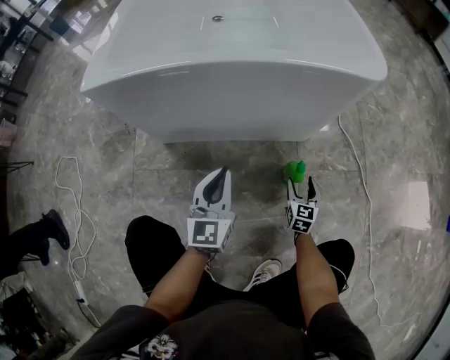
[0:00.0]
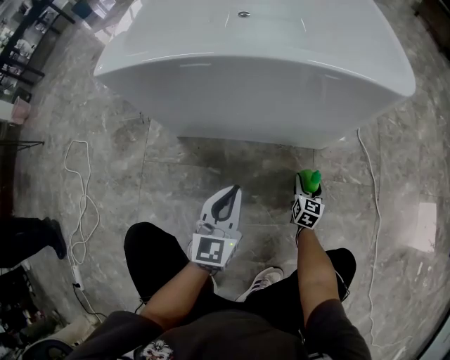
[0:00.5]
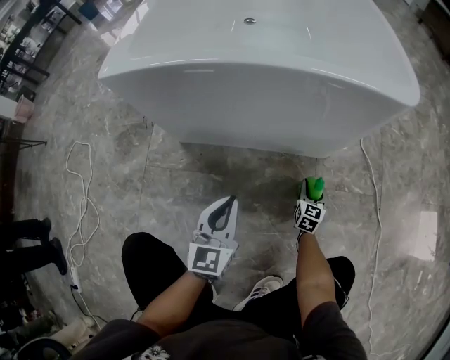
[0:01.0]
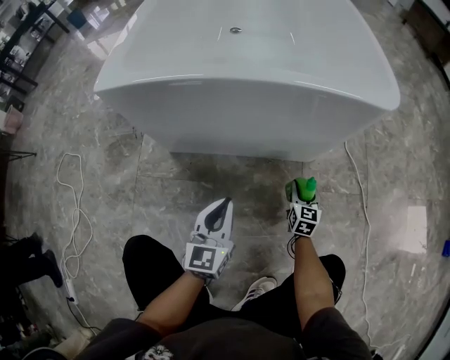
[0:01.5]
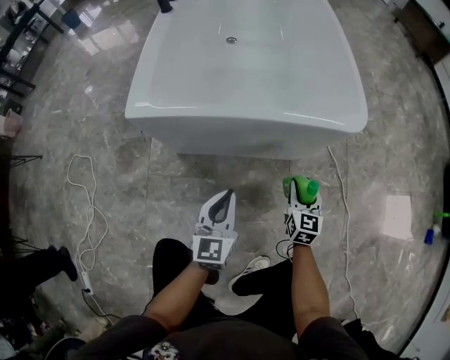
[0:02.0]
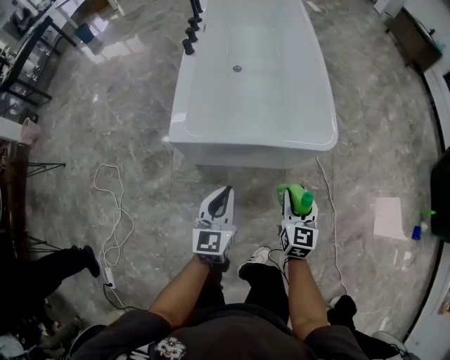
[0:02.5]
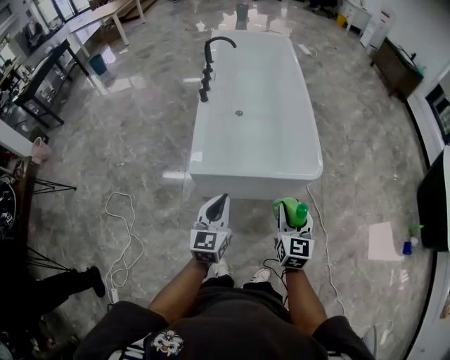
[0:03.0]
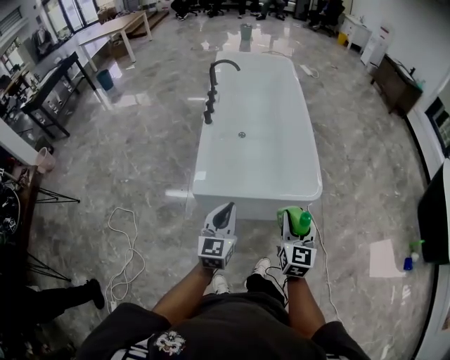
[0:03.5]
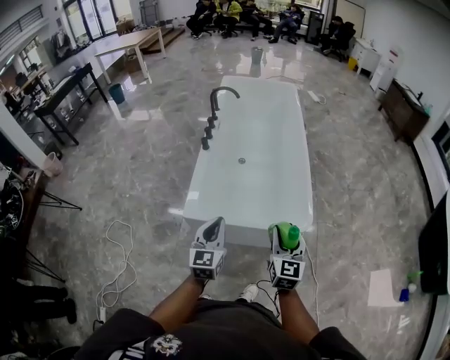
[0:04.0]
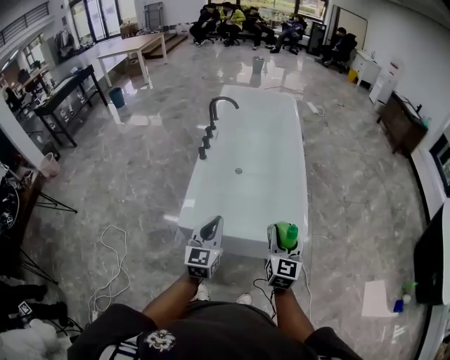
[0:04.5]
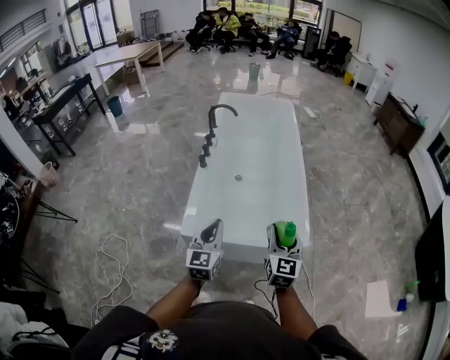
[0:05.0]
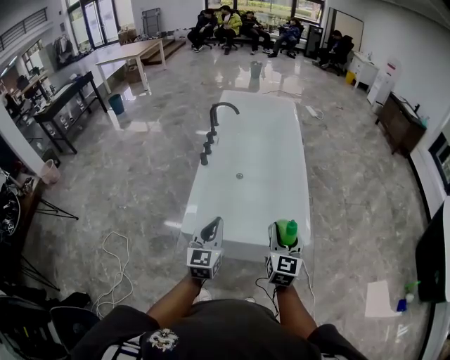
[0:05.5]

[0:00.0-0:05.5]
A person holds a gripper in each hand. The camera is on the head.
0:00.0 to 0:02.0: The right gripper goes about 30 cm upward, and closes; the left gripper heads upward, covering about 15 cm.
0:02.0 to 0:03.5: The two grippers go approximately 50 cm upward.
0:03.5 to 0:05.5: Both grippers travel together forward, about 10 cm.

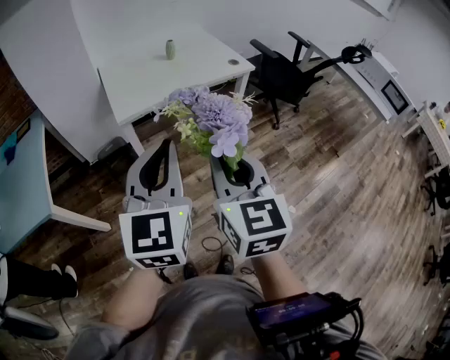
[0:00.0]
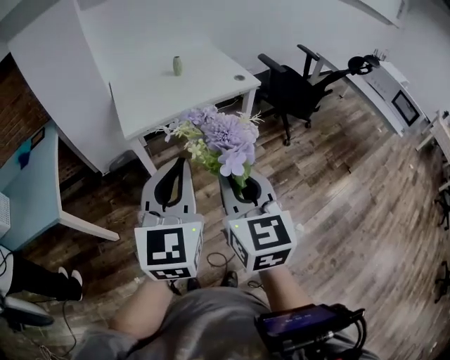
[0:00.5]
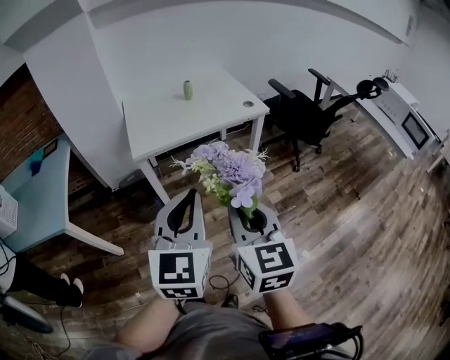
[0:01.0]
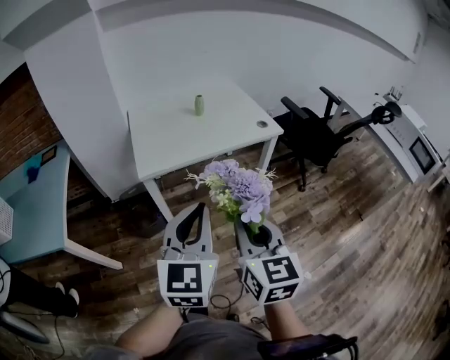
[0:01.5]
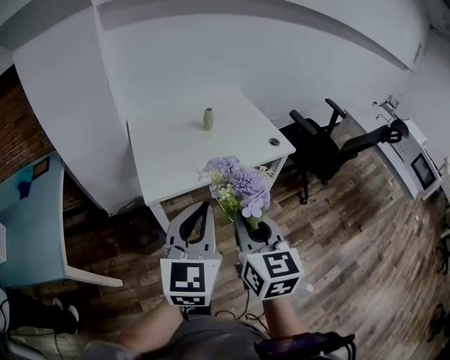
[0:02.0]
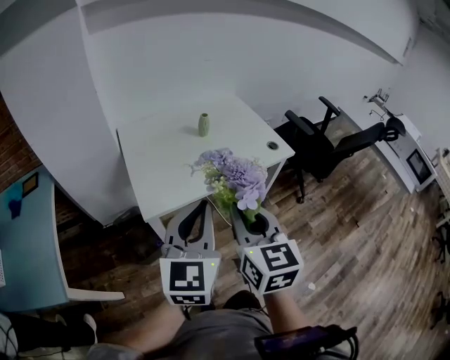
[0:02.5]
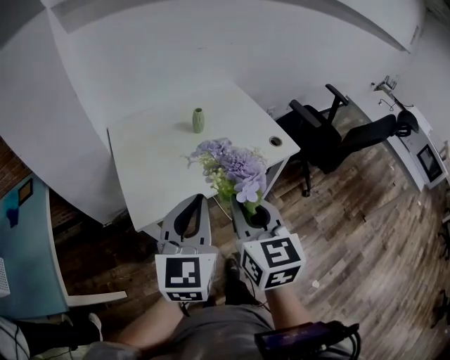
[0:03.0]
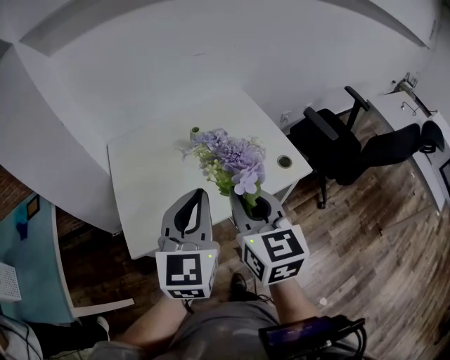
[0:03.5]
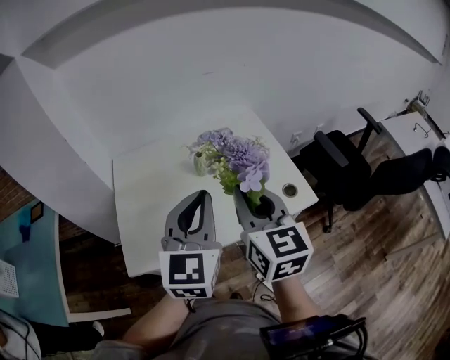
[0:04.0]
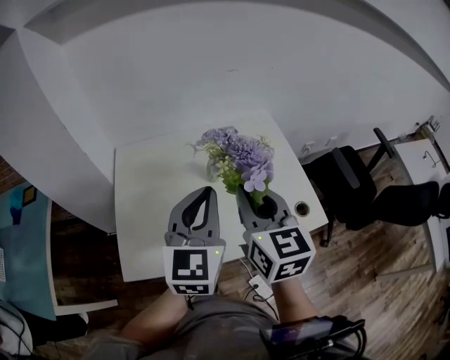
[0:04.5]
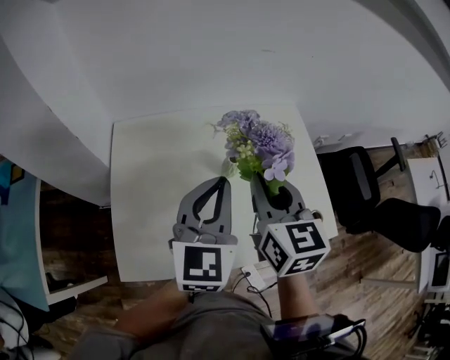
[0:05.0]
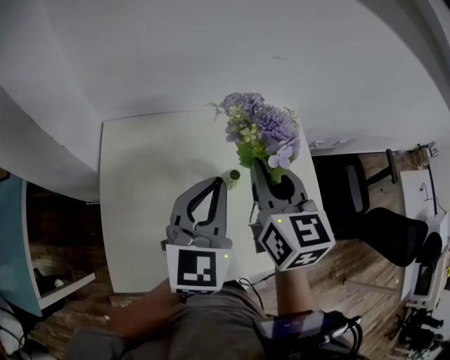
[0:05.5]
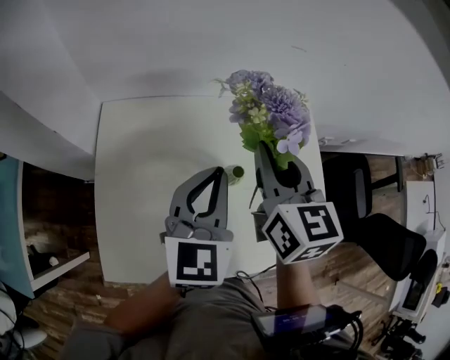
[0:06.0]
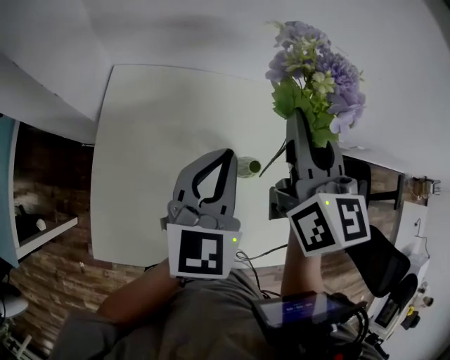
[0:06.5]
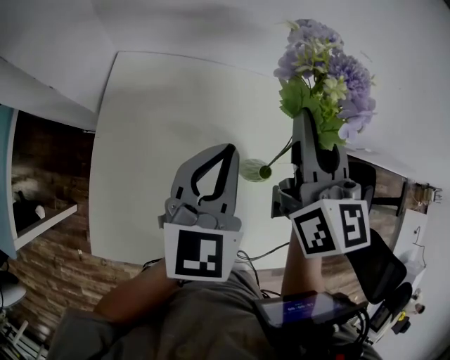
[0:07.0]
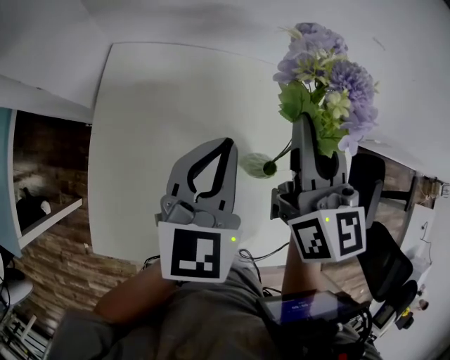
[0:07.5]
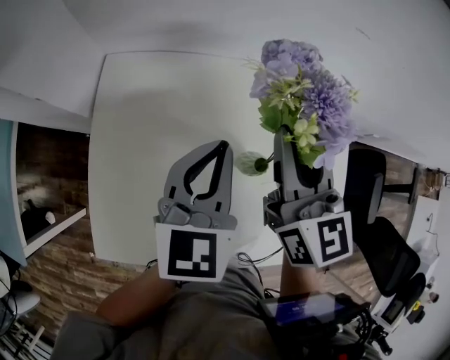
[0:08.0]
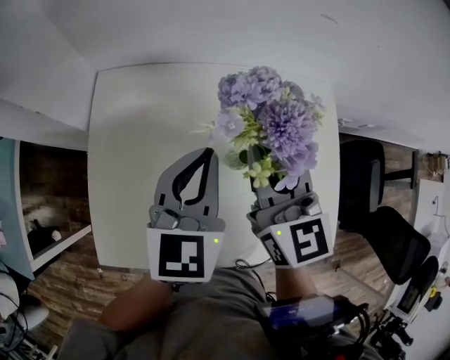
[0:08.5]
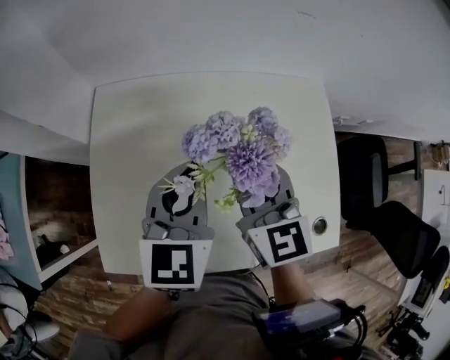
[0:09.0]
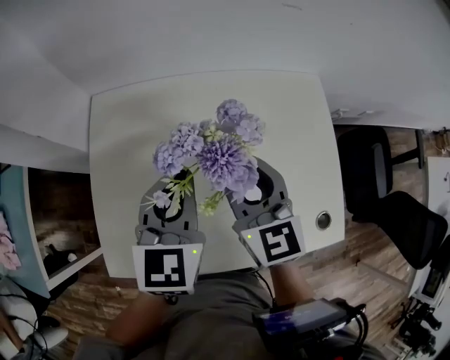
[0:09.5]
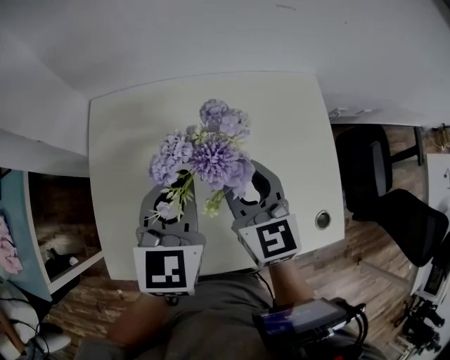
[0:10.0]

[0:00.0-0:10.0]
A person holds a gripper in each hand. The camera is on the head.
0:00.0 to 0:02.0: The two grippers go approximately 20 cm forward.
0:02.0 to 0:04.0: The two grippers go roughly 40 cm forward.
0:04.0 to 0:06.0: Both grippers travel together forward, roughly 30 cm.
0:08.0 to 0:10.0: The right gripper goes approximately 10 cm downward and backward, and opens its fingers.

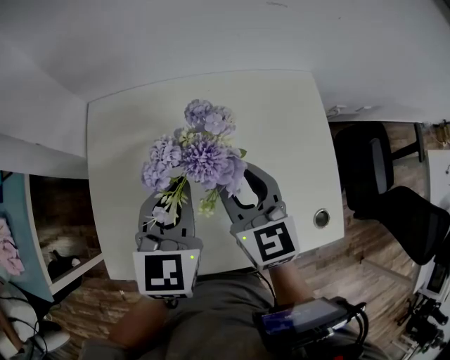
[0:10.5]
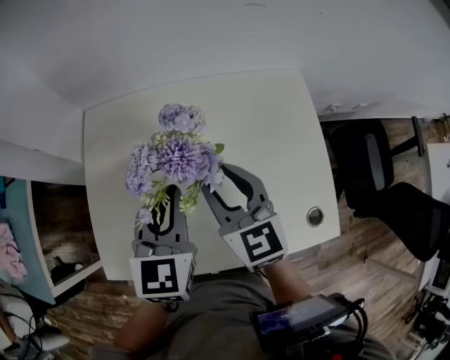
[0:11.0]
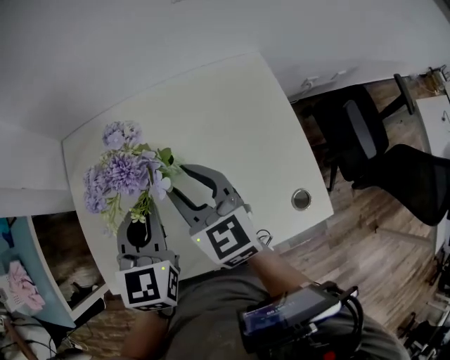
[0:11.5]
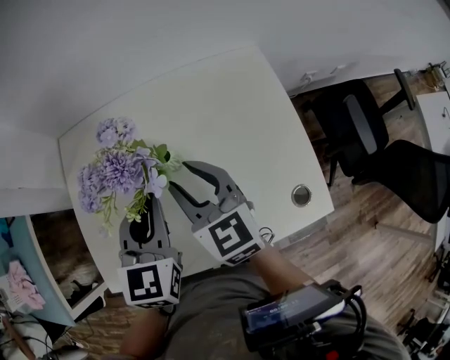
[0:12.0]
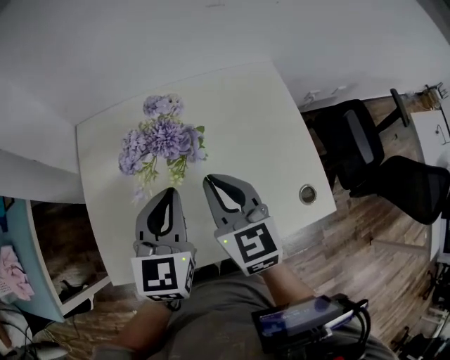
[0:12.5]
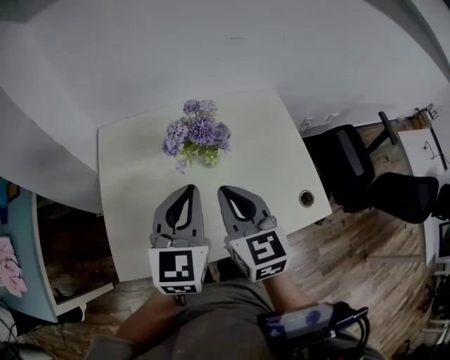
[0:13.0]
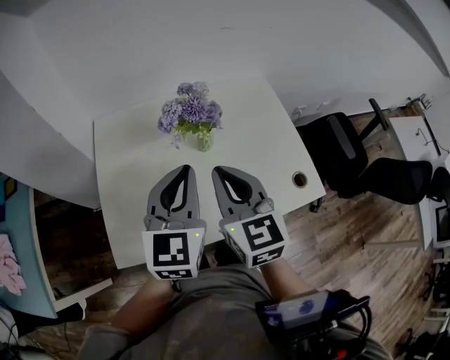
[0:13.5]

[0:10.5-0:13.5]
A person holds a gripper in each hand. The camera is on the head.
0:10.5 to 0:12.0: The left gripper changes place by roughly 5 cm.
0:12.0 to 0:13.5: The left gripper travels upward and backward by some 15 cm, while the right gripper heads backward and upward, covering approximately 15 cm, and closes.

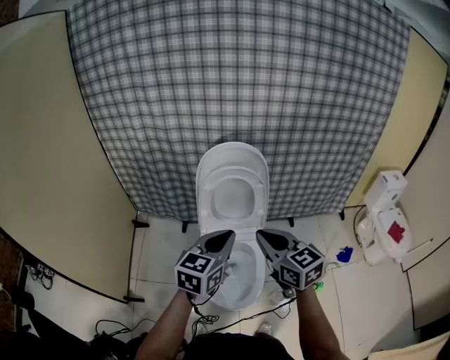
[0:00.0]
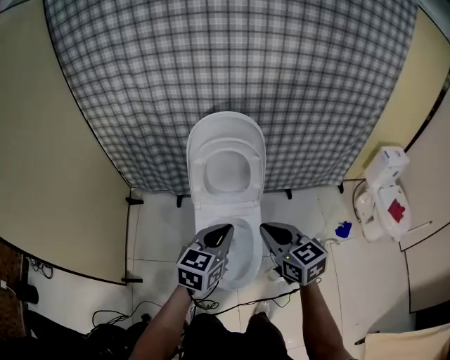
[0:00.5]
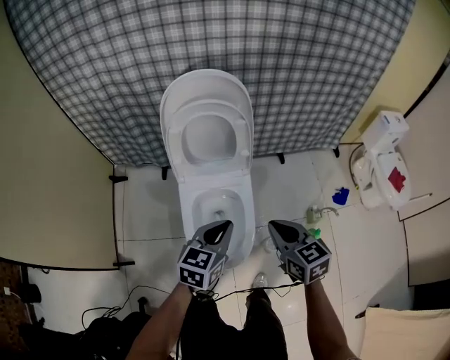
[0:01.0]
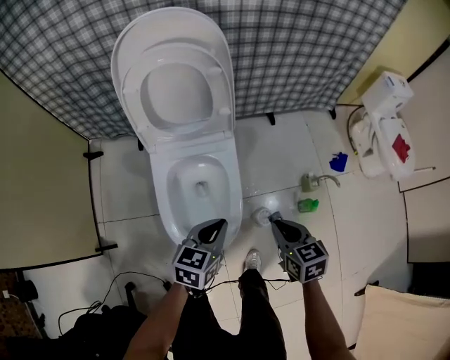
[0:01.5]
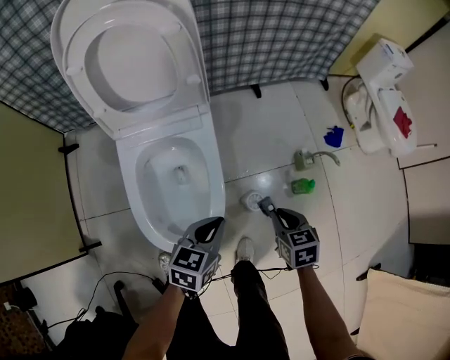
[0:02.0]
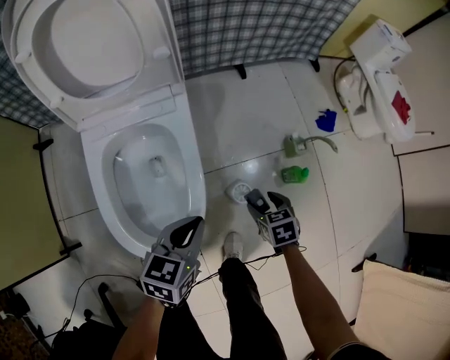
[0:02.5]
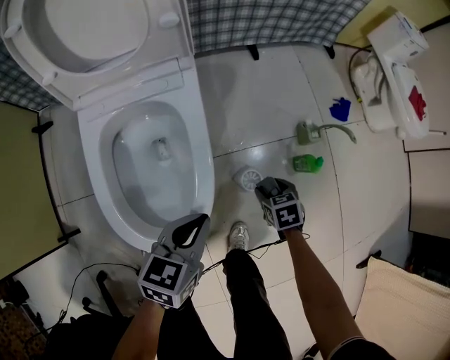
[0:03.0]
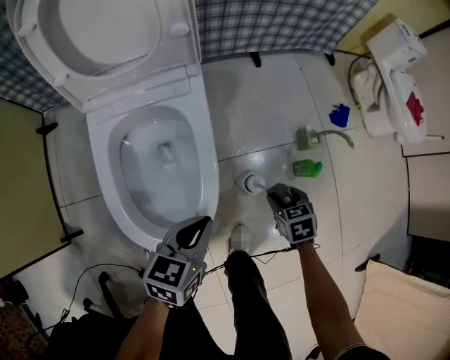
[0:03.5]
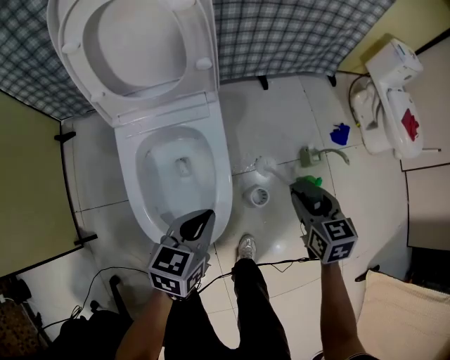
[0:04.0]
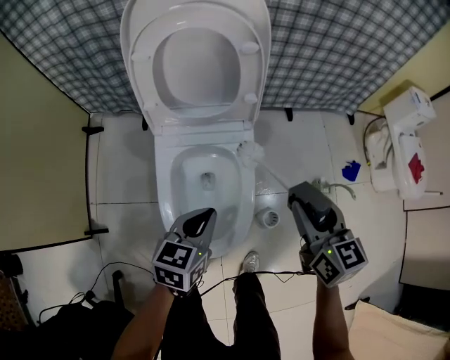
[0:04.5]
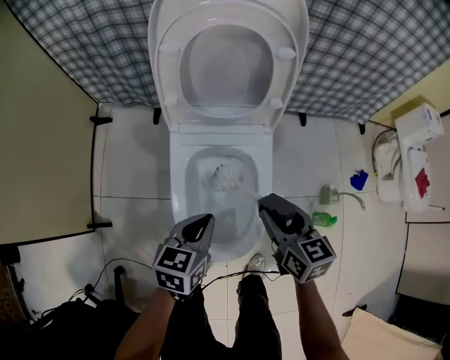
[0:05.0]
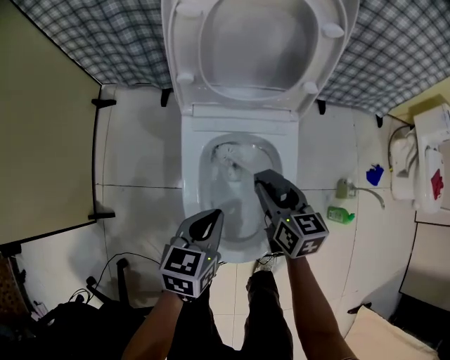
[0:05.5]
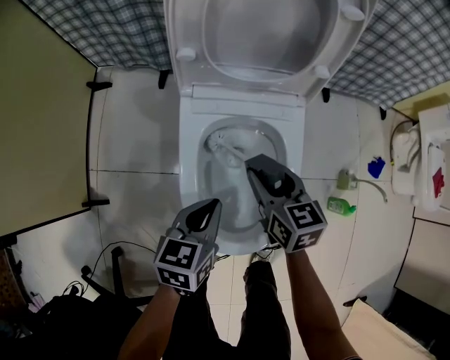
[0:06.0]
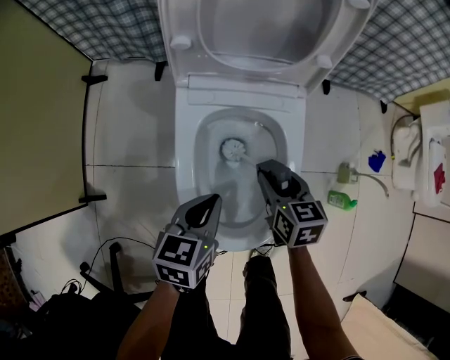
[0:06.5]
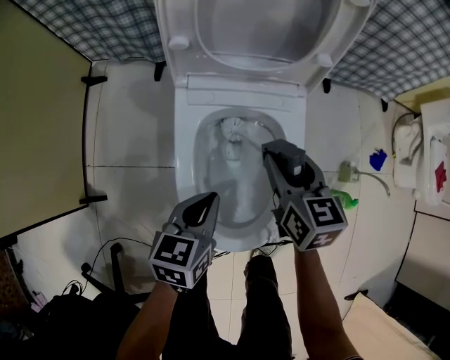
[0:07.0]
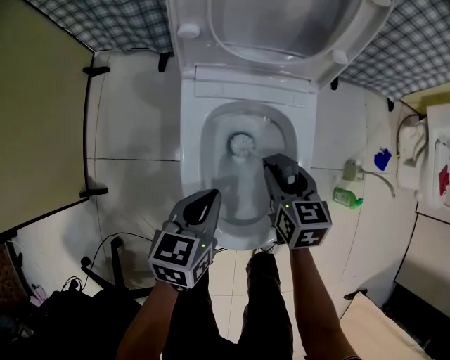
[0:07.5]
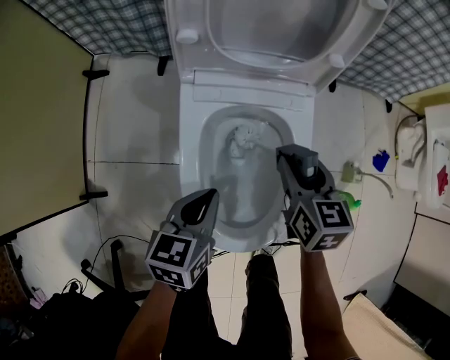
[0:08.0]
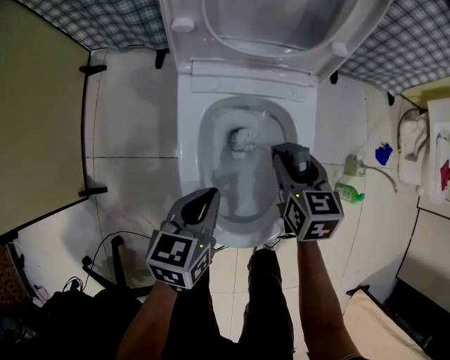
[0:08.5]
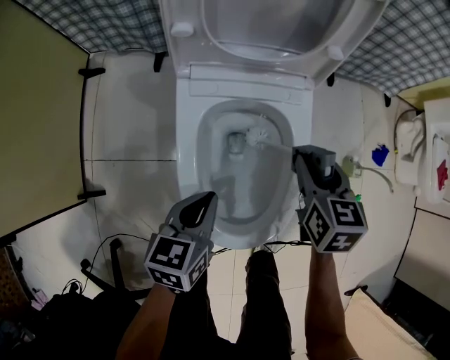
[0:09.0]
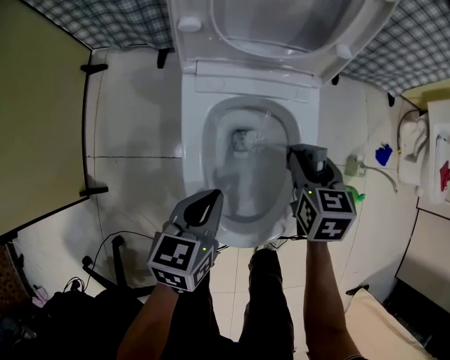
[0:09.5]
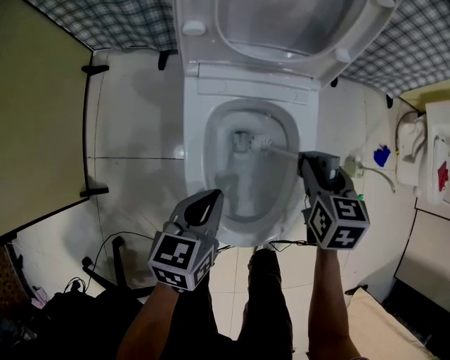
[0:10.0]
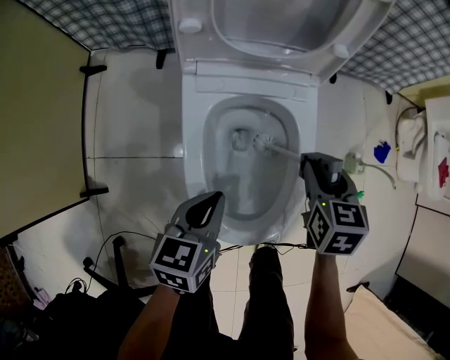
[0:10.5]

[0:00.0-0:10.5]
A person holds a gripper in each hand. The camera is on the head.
0:00.0 to 0:02.0: The right gripper is displaced downward and to the right by about 50 cm, and tilts its fingers roughly 40 degrees downward. The left gripper goes some 40 cm downward, and changes its angle by some 30 degrees.
0:02.0 to 0:04.0: The right gripper shifts about 5 cm forward, goes downward and returns, roughly 20 cm each way, and opens; the left gripper reaches some 5 cm downward, then returns.
0:04.0 to 0:06.5: The right gripper is displaced to the left by about 25 cm. The left gripper travels to the left by roughly 15 cm.
0:06.5 to 0:08.5: The right gripper goes up and down, approximately 10 cm each way, reversing 3 times.
0:08.5 to 0:10.5: The right gripper shifts roughly 5 cm to the right.
